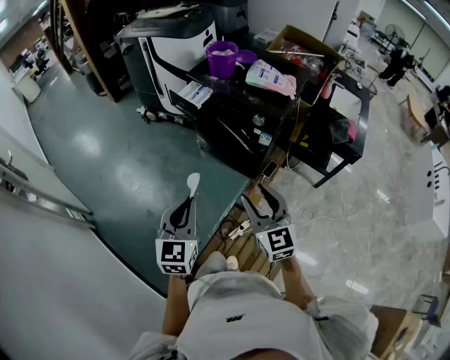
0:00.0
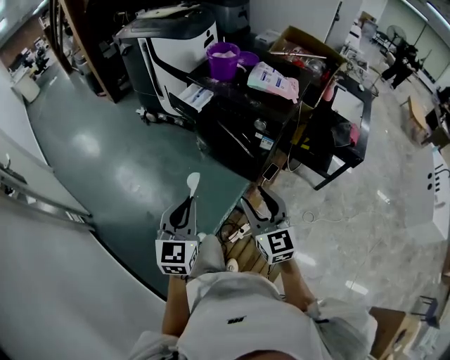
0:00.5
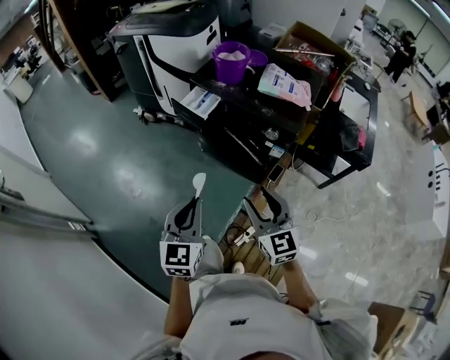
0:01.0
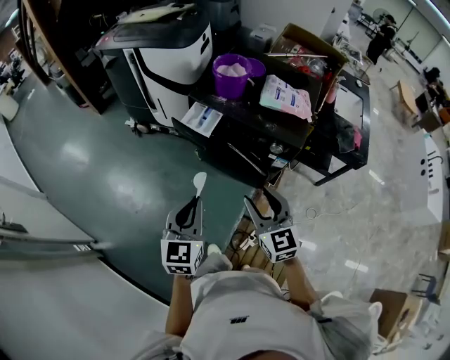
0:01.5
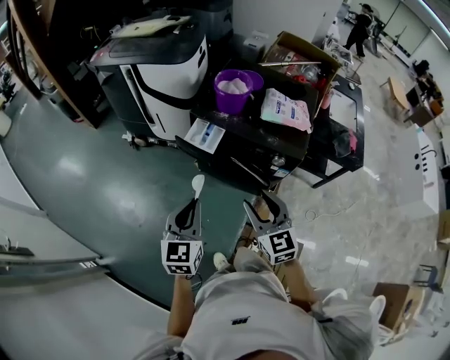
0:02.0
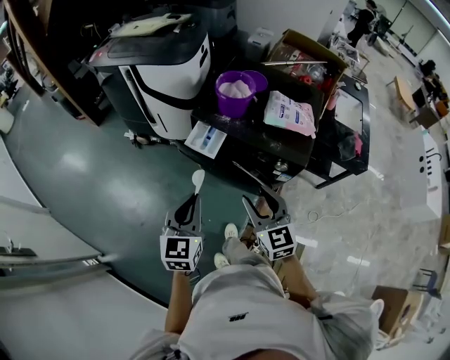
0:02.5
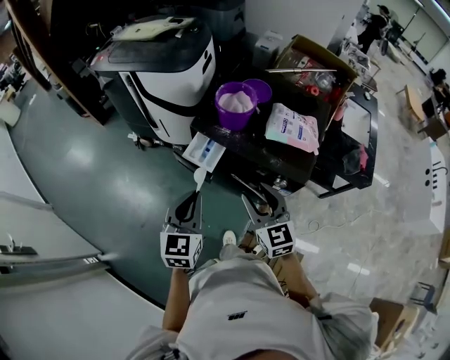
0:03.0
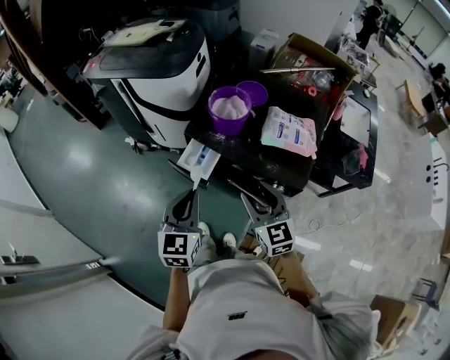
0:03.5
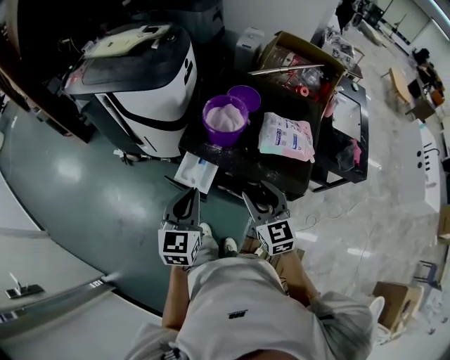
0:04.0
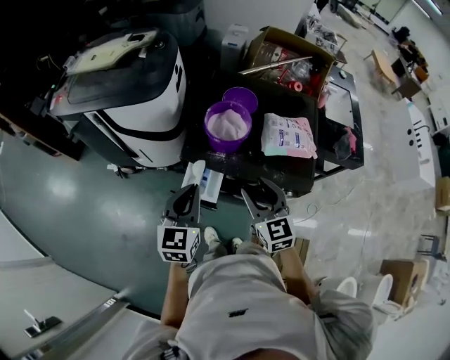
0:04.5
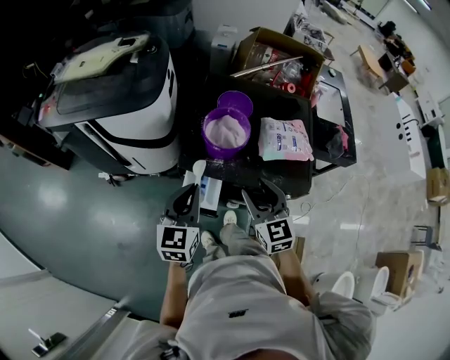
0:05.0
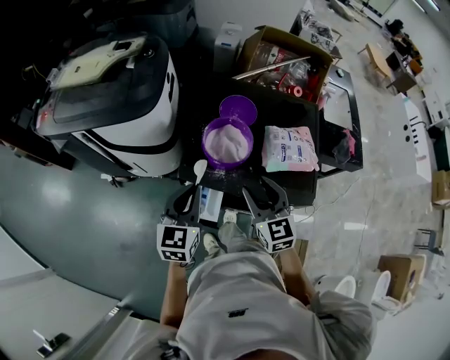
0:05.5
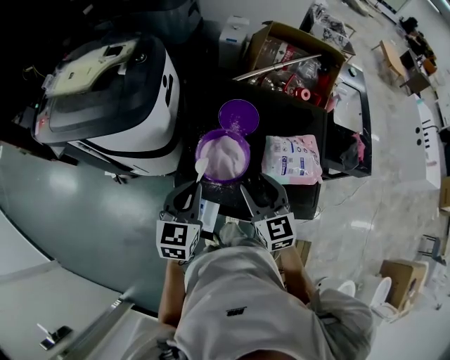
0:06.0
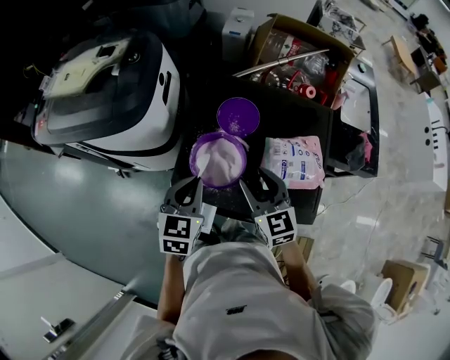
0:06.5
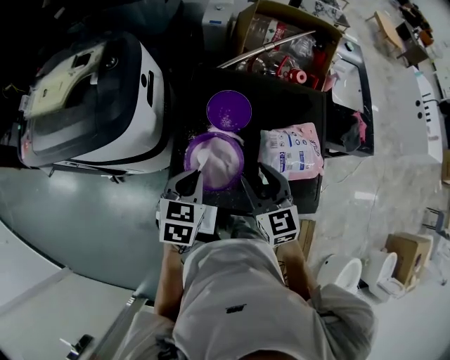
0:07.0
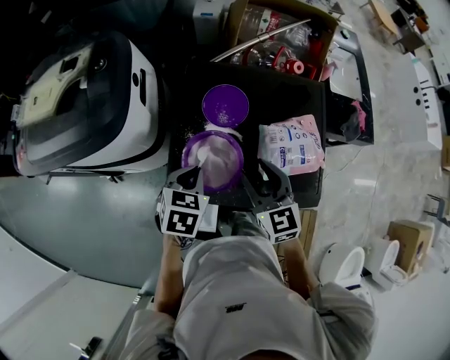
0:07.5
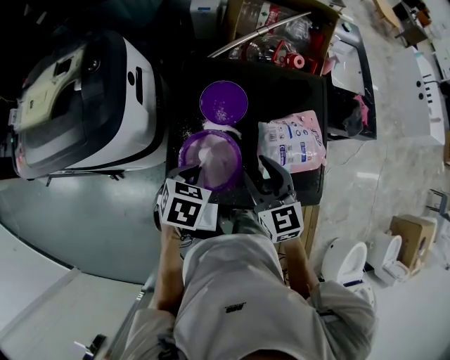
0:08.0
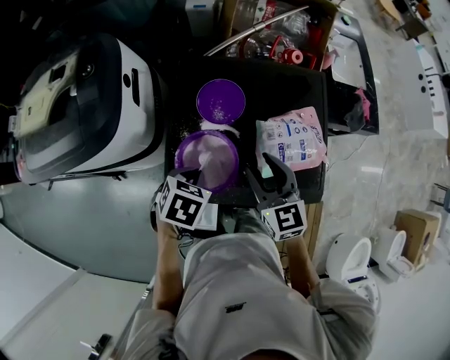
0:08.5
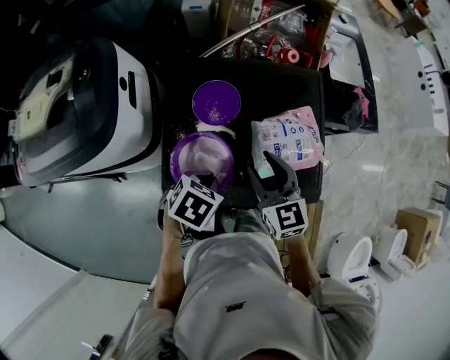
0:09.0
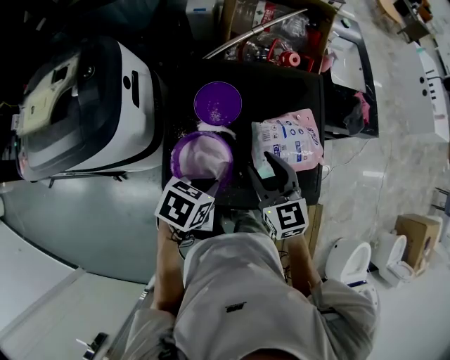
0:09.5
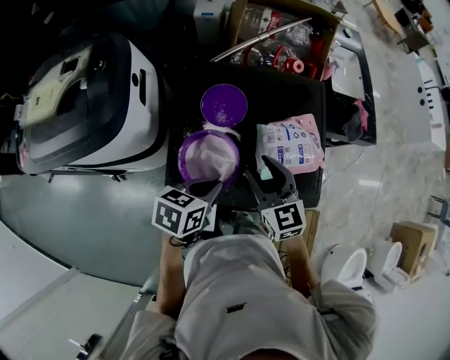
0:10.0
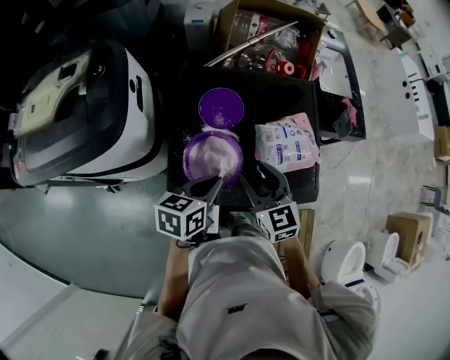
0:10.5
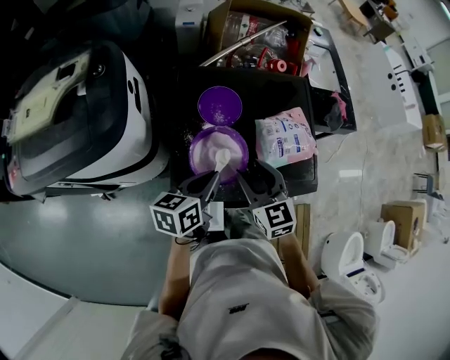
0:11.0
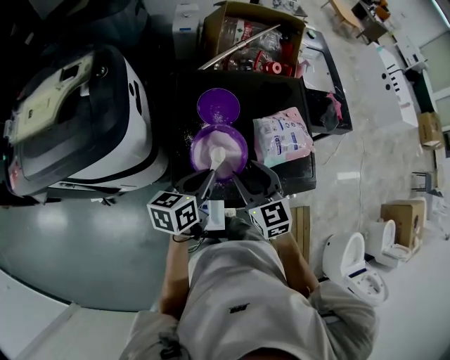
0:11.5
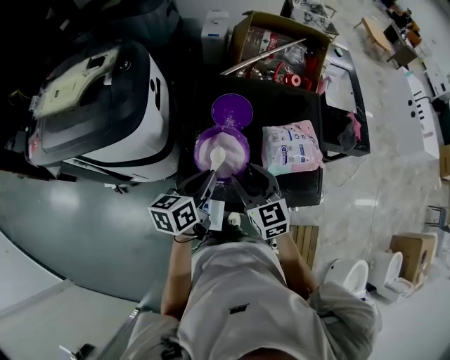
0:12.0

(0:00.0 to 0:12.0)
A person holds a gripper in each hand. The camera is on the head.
0:00.0 - 0:02.0: The two grippers go about 30 cm forward and to the left.
0:02.0 - 0:04.0: Both grippers move forward, about 25 cm.
0:04.0 - 0:06.0: The two grippers go some 20 cm forward.
0:06.0 - 0:08.0: The right gripper shifts some 5 cm forward. The left gripper heads downward and forward, covering about 10 cm, and tips its fingers downward by about 40 degrees.
0:08.0 - 0:10.0: The left gripper heads to the right, covering some 5 cm, and turns by roughly 30 degrees.
0:10.0 - 0:12.0: The left gripper goes roughly 5 cm to the left, and changes its angle by some 30 degrees, while the right gripper moves backward and to the left, some 10 cm.

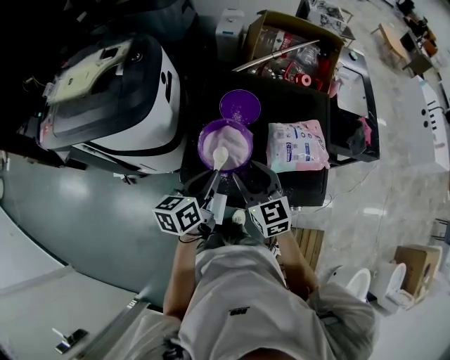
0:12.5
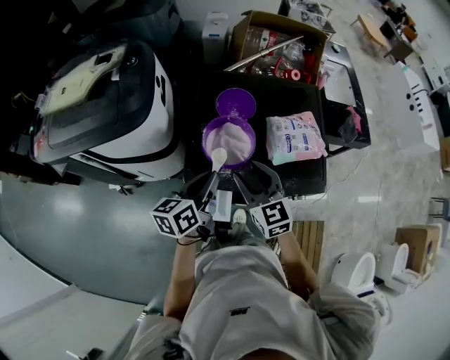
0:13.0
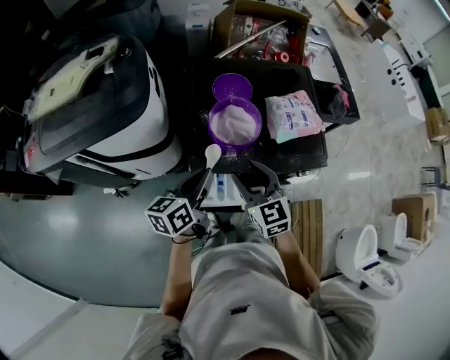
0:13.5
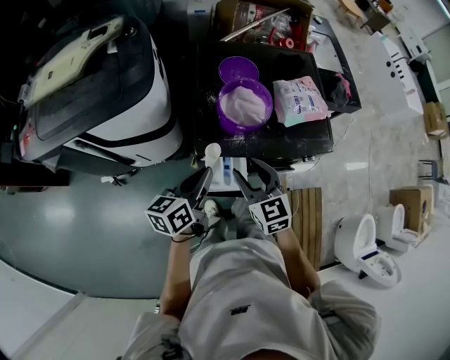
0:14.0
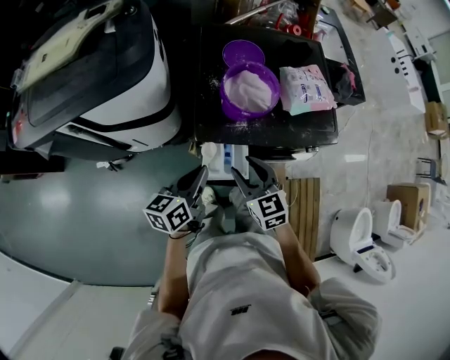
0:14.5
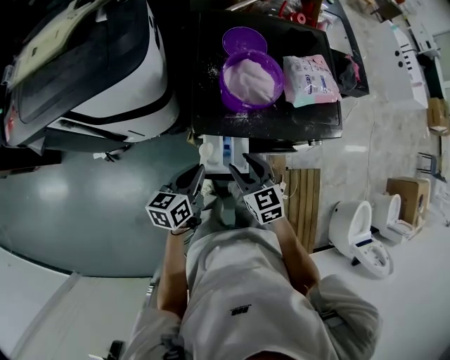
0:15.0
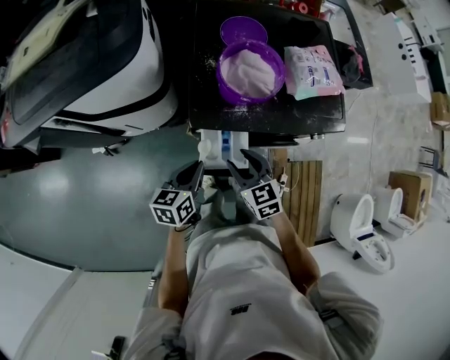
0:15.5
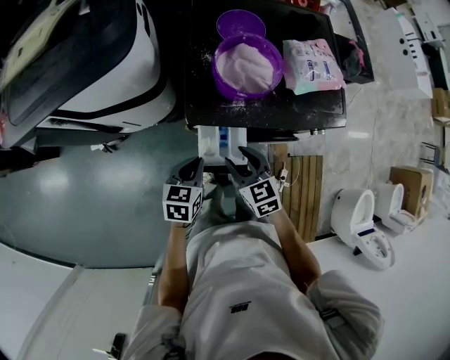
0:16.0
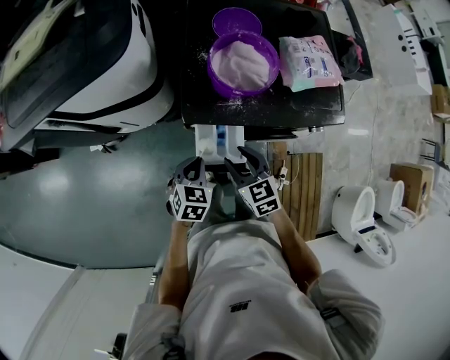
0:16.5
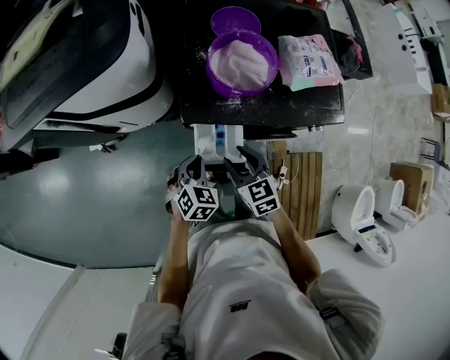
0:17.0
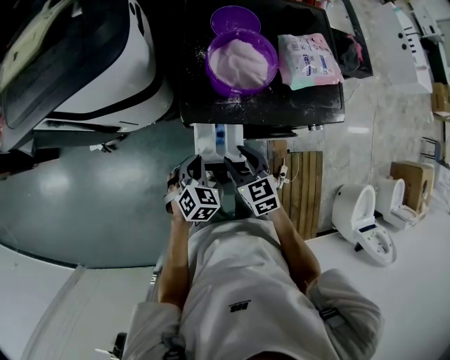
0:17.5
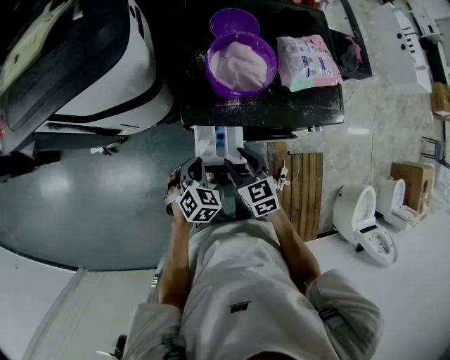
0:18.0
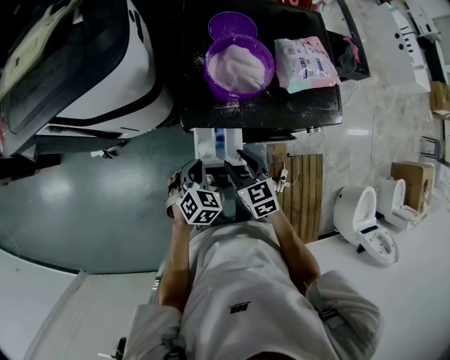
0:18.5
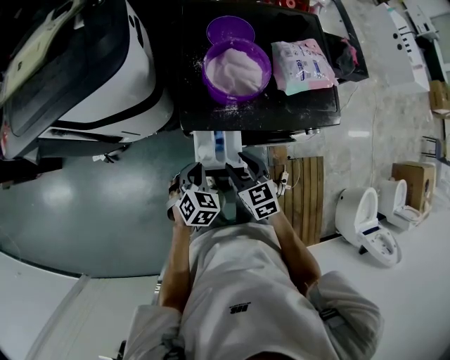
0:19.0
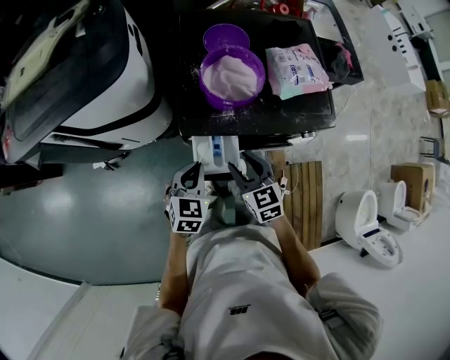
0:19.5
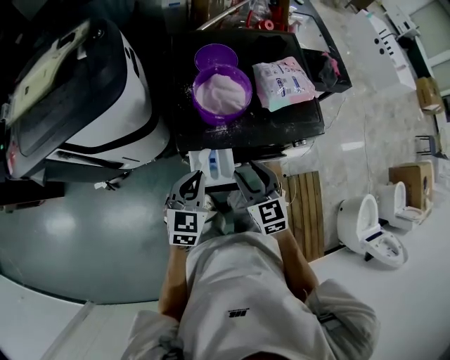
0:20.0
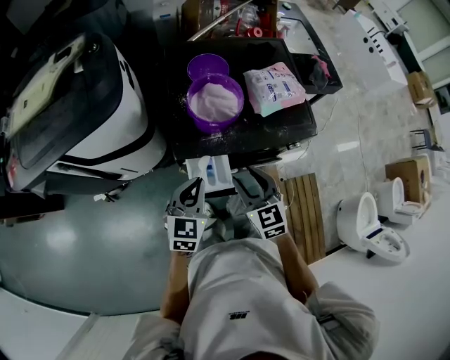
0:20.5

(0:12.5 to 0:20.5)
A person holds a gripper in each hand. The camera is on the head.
0:12.5 - 0:14.5: Both grippers travel together backward, to the left and downward, approximately 20 cm.
0:14.5 - 0:16.5: The right gripper is displaced downward by approximately 10 cm; the left gripper is displaced downward by roughly 15 cm, and tilts its fingers roughly 30 degrees downward.
0:16.5 - 0:18.5: The grippers make only small movements.
0:18.5 - 0:20.5: The grippers both shift upward by roughly 15 cm. The left gripper turns by approximately 30 degrees.

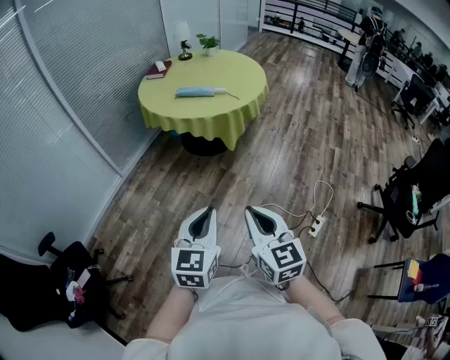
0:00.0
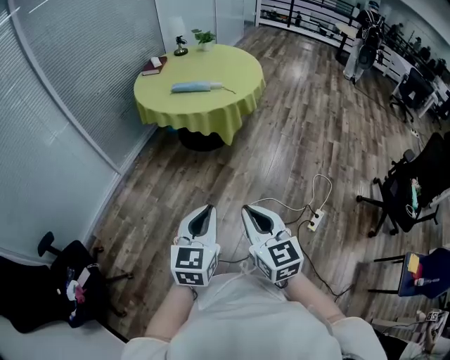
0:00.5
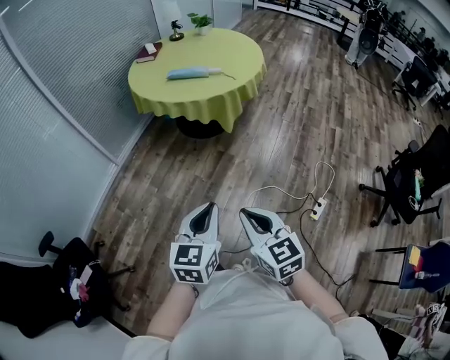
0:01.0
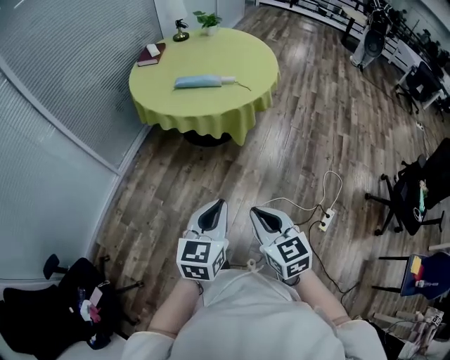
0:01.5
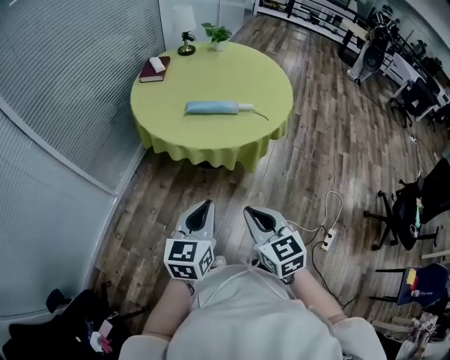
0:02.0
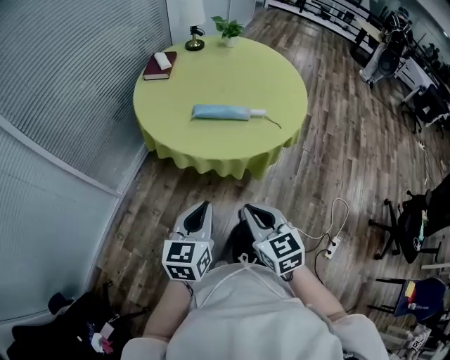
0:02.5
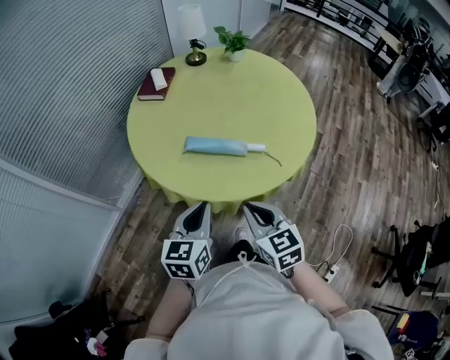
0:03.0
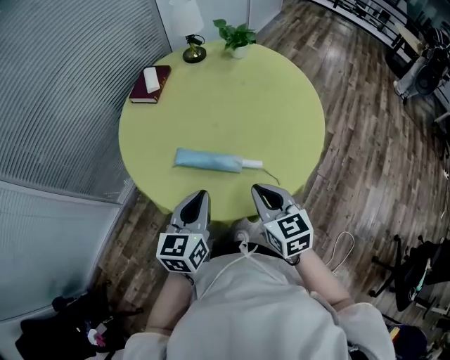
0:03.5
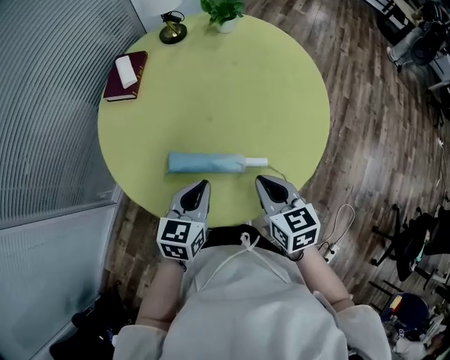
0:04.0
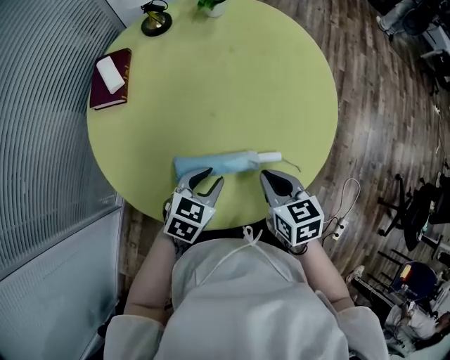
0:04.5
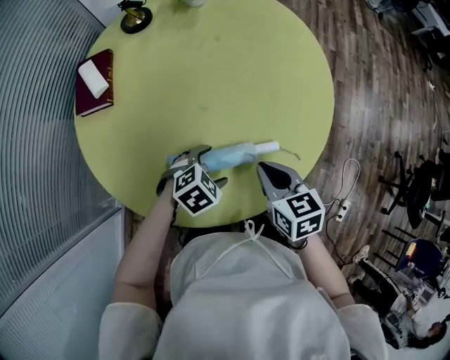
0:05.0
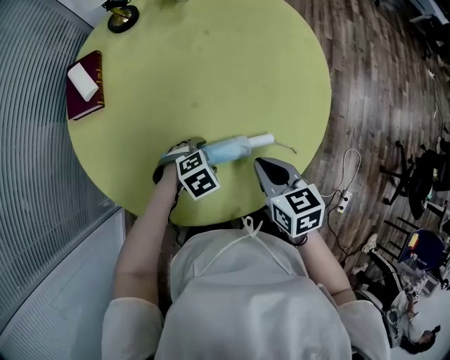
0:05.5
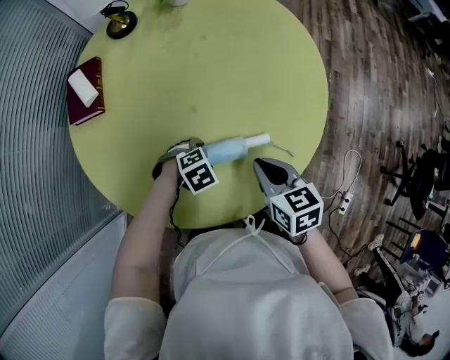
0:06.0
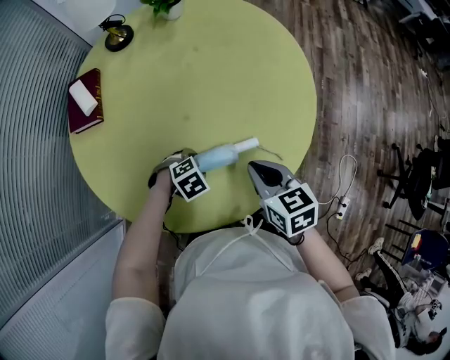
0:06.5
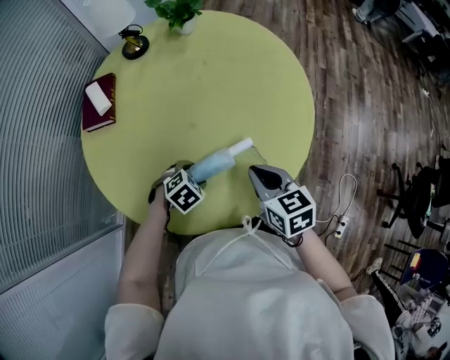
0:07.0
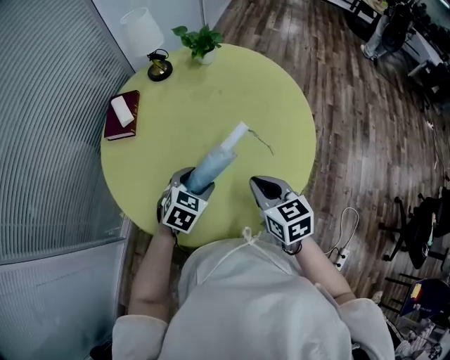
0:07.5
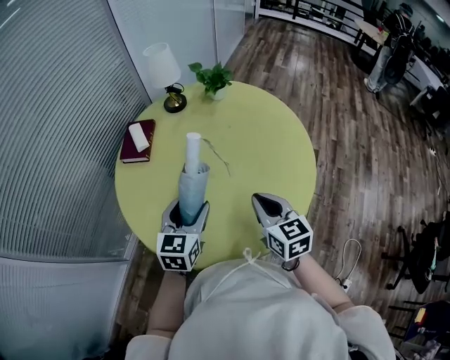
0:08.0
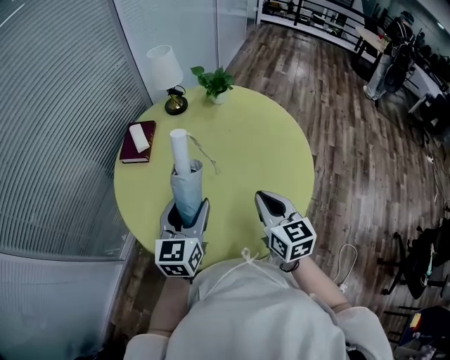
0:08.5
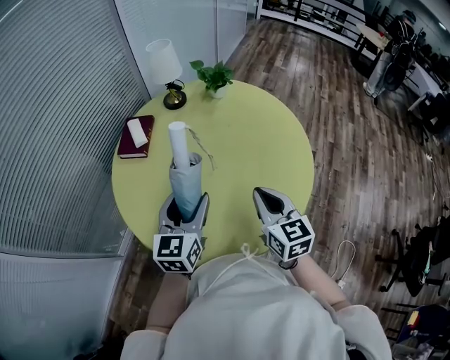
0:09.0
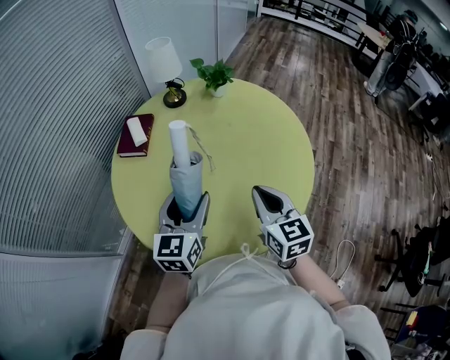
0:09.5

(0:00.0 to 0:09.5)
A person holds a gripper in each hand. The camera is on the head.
0:00.0 - 0:02.0: The pair of grippers is taken forward and to the left, roughly 40 cm.
0:02.0 - 0:04.0: The two grippers travel together, forward, approximately 60 cm.
0:04.0 - 0:05.5: The left gripper heads downward, covering approximately 20 cm, points its fingers approximately 40 degrees further downward, and opens up; the right gripper goes some 5 cm downward.
0:05.5 - 0:07.5: The right gripper is displaced upward by some 10 cm; the left gripper goes roughly 15 cm upward, and turns by roughly 40 degrees.
0:07.5 - 0:09.5: The right gripper moves upward, roughly 10 cm; the left gripper heads upward, covering roughly 15 cm, and tilts its fingers some 40 degrees upward.
